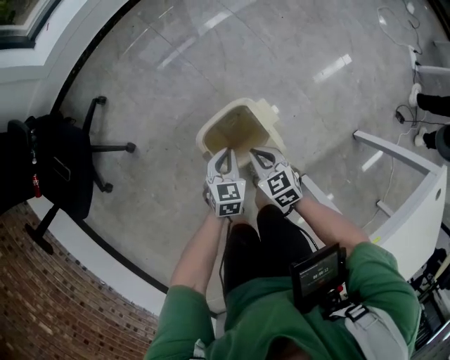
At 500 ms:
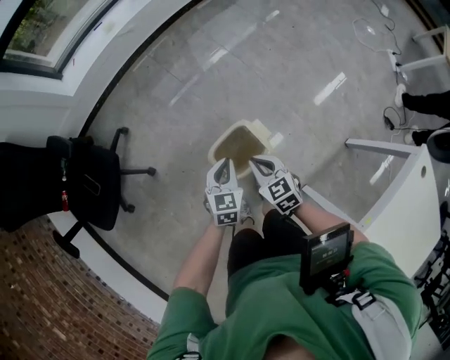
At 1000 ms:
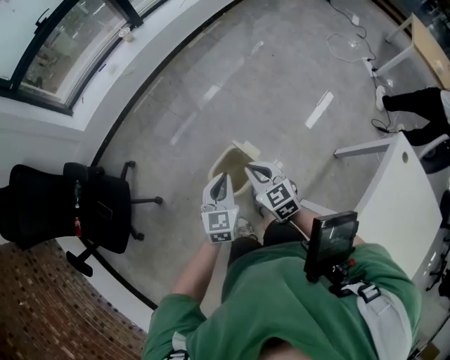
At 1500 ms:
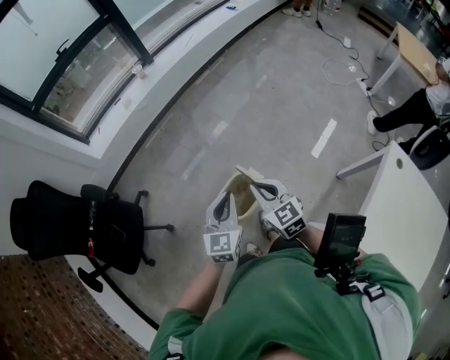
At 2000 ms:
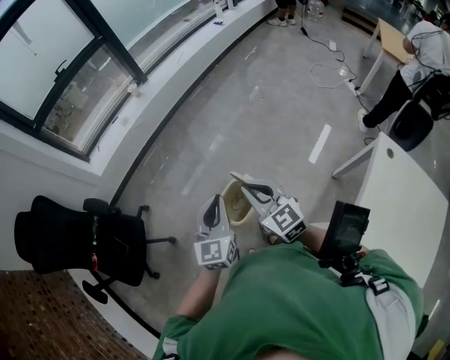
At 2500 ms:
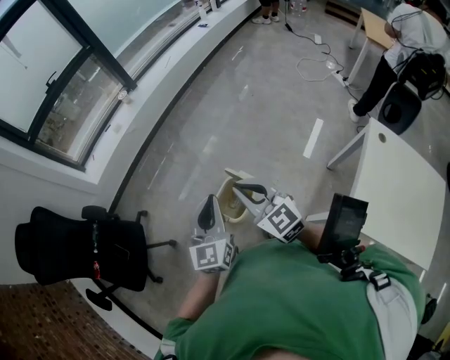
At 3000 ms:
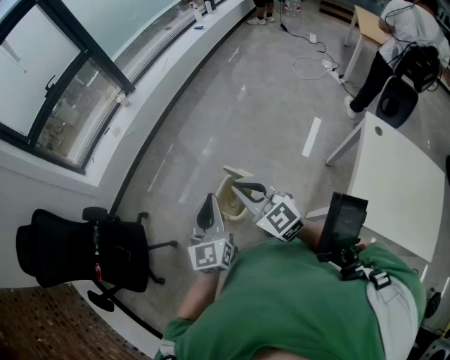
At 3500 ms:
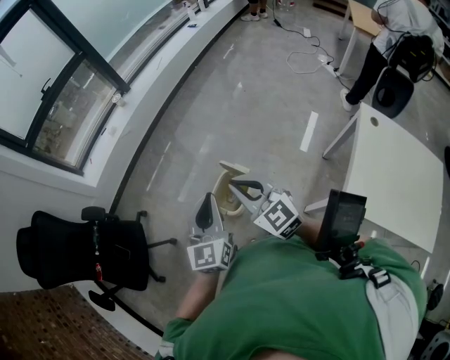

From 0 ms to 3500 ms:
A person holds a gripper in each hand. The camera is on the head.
From 0 ms to 2000 ms: The two grippers go roughly 50 cm upward. The right gripper angles its fingers upward, by approximately 30 degrees, while the left gripper points its fingers about 40 degrees further upward.
From 2000 ms to 3500 ms: The two grippers go about 5 cm backward.

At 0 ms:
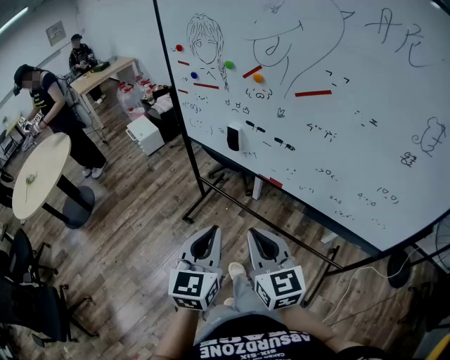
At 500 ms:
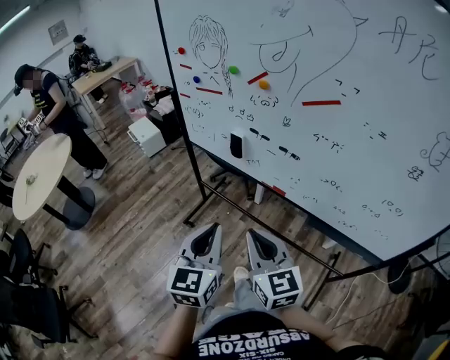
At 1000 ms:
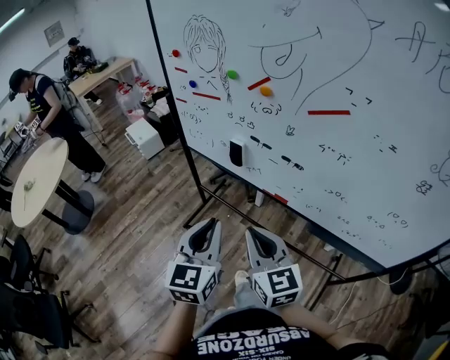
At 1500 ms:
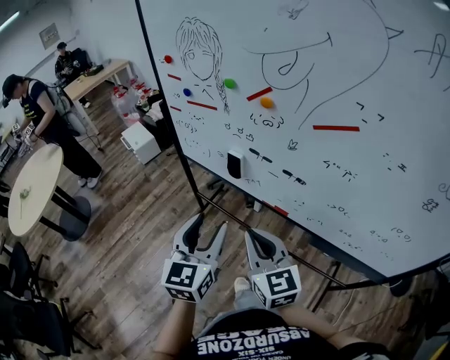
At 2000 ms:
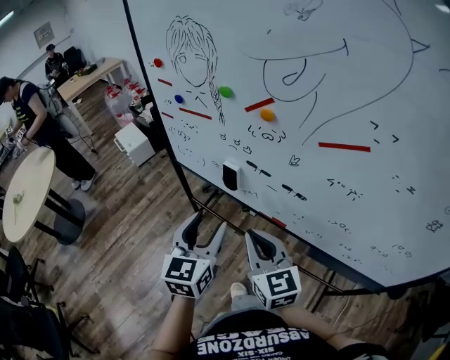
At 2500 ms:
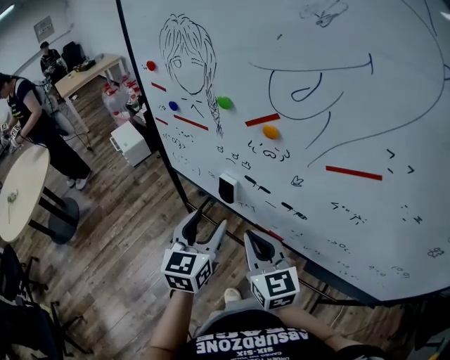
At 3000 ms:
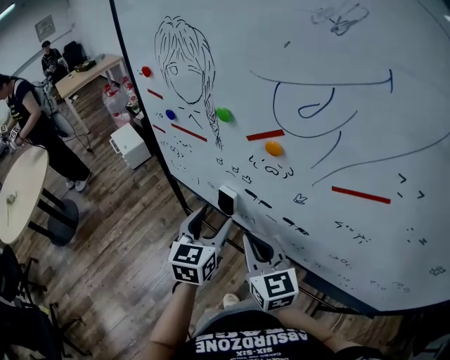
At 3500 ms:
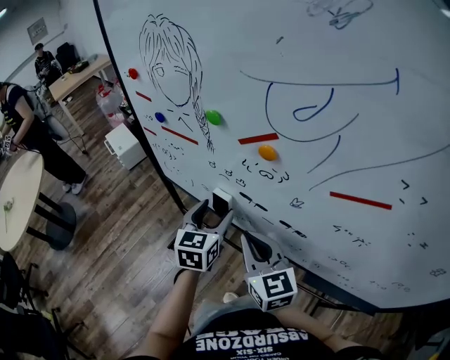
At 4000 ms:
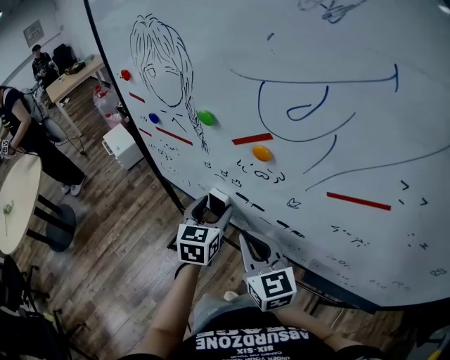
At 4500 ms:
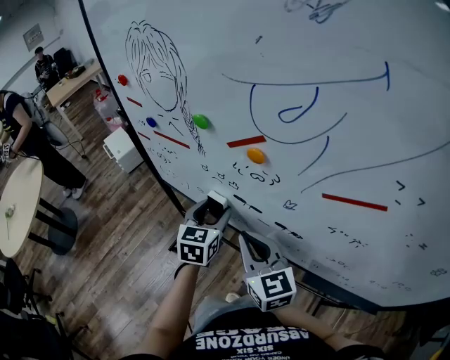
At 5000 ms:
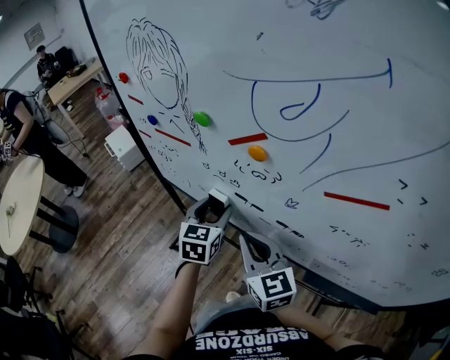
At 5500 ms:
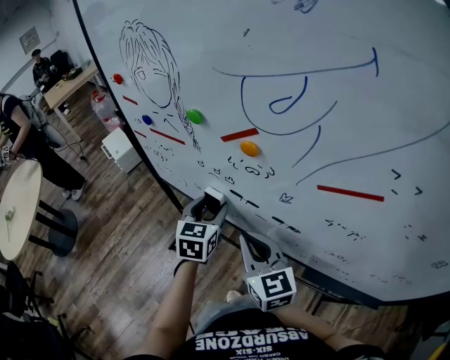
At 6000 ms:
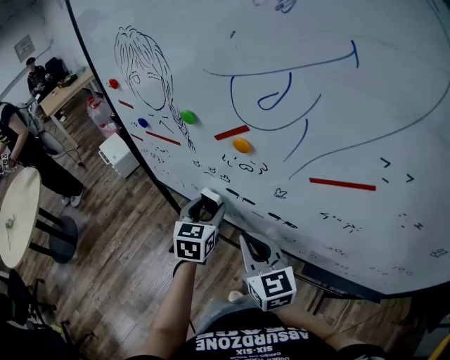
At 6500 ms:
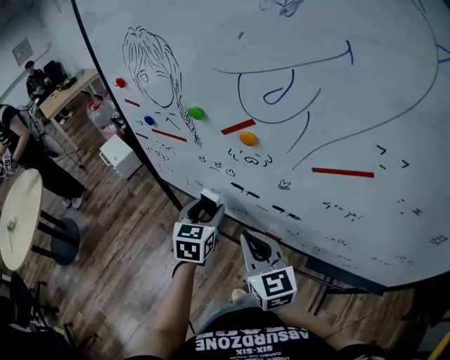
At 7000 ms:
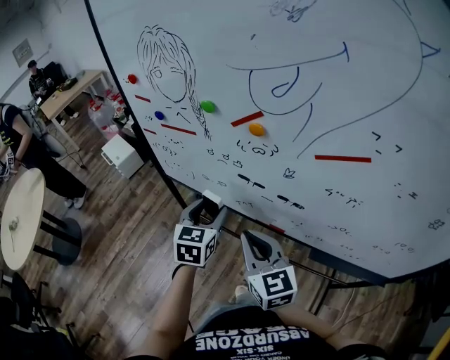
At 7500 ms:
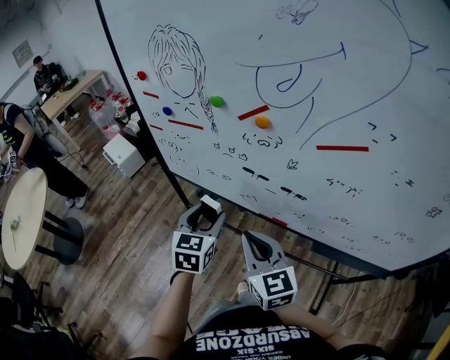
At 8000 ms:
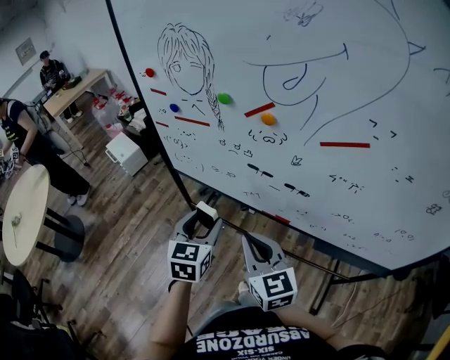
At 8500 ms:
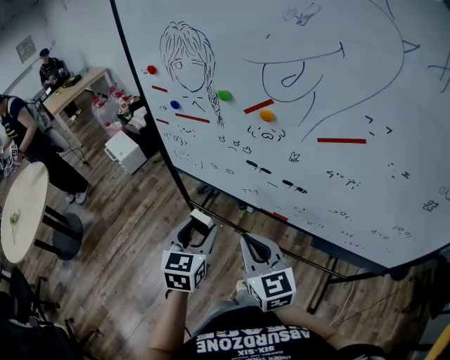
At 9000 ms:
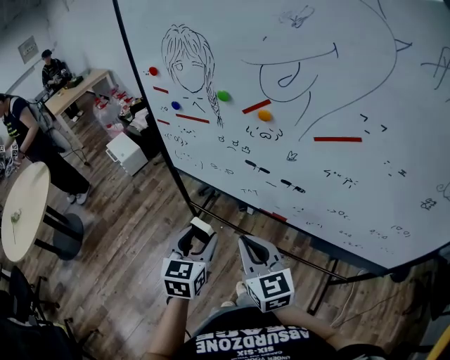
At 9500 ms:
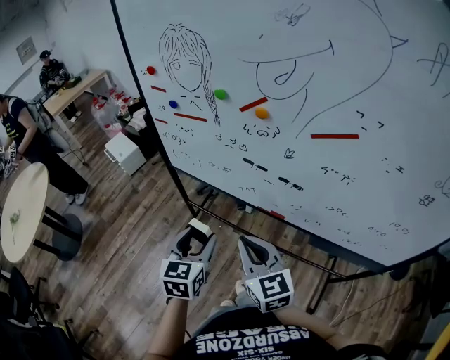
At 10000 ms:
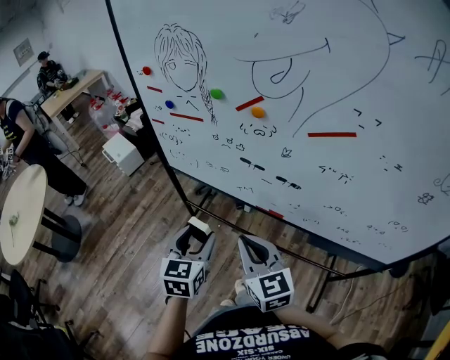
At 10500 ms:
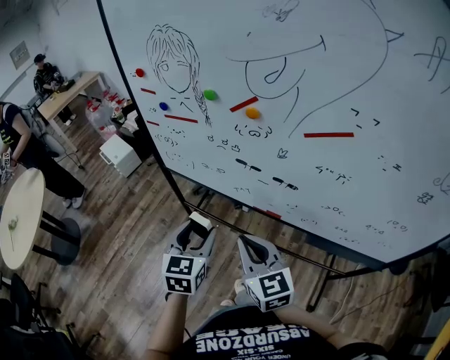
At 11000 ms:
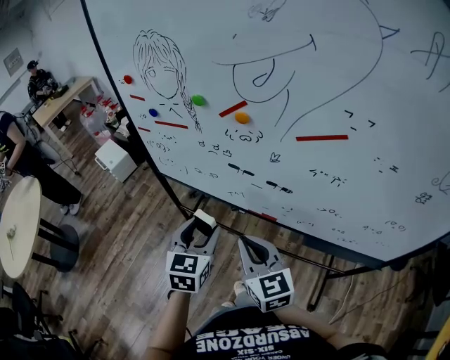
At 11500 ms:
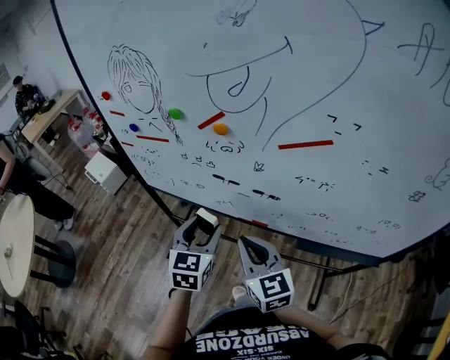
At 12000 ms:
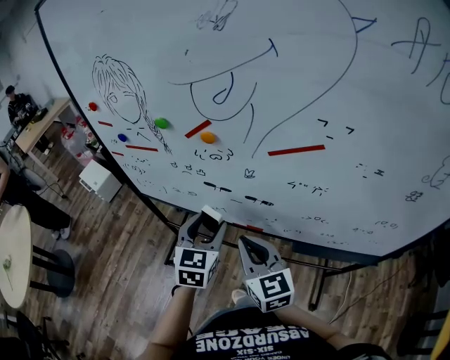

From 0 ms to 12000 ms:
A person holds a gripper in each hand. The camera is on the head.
From 0 ms to 2000 ms: Both grippers travel together forward, about 20 cm. The left gripper opens up.
From 2000 ms to 4000 ms: The left gripper shifts about 20 cm forward and downward; the right gripper is displaced forward by roughly 10 cm.
From 4000 ms to 6000 ms: The grippers stay close to where they were, moving slightly.
From 6000 ms to 8000 ms: The two grippers go roughly 15 cm backward and to the left.
From 8000 ms to 10000 ms: The left gripper travels backward by some 5 cm.
From 10000 ms to 12000 ms: The right gripper is displaced to the right and forward by about 10 cm. The left gripper shifts approximately 15 cm to the right and forward.

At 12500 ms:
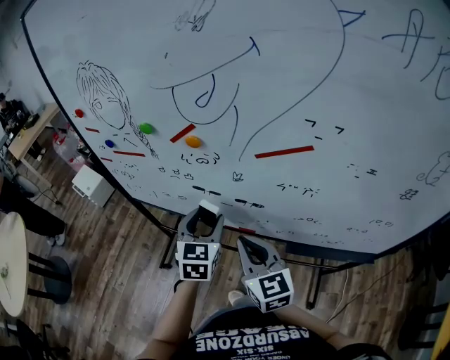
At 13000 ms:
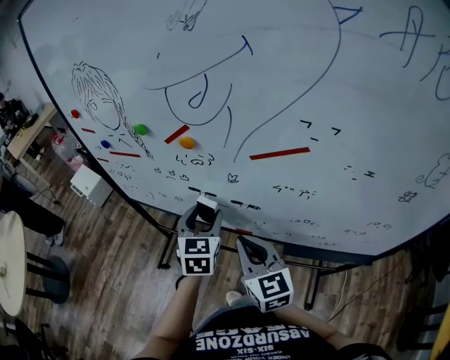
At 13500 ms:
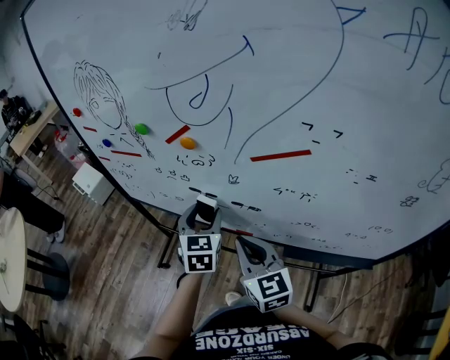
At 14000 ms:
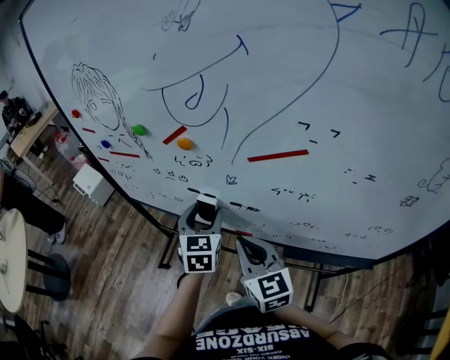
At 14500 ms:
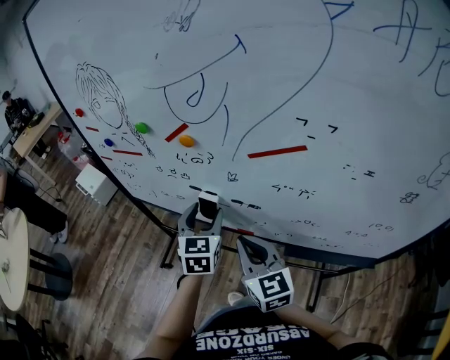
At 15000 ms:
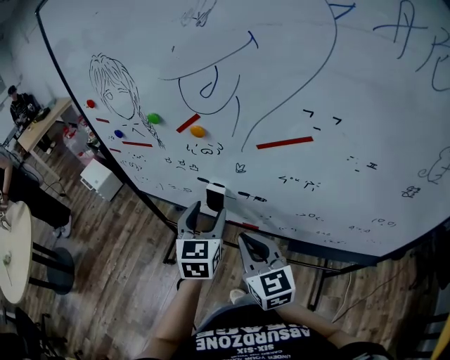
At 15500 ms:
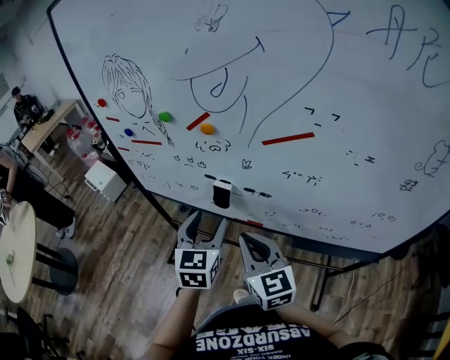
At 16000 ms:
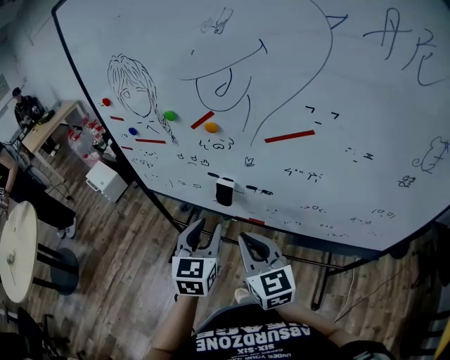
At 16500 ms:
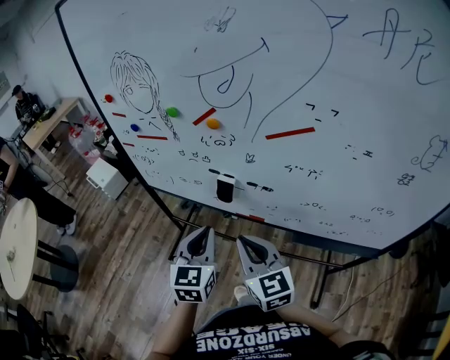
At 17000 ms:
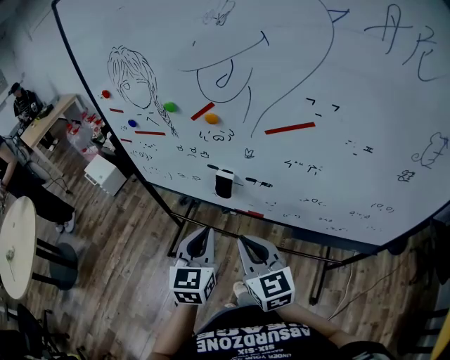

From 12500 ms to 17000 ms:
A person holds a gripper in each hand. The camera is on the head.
From 12500 ms to 14500 ms: The grippers stay close to where they were, moving slightly.
From 14500 ms to 17000 ms: The left gripper goes approximately 15 cm backward and to the left, and closes. The right gripper heads backward, covering about 5 cm.

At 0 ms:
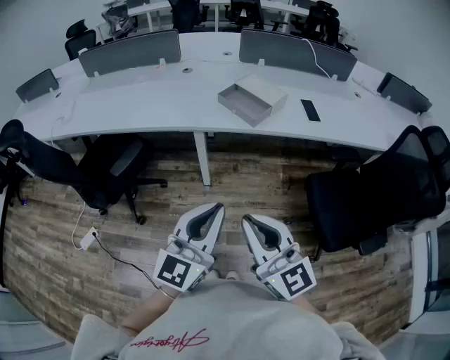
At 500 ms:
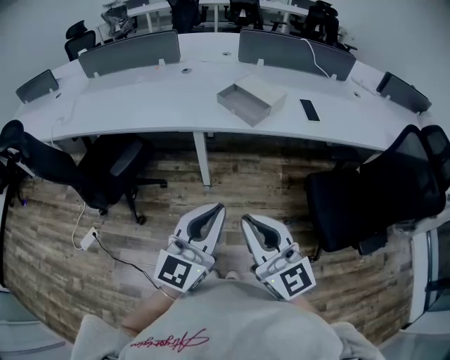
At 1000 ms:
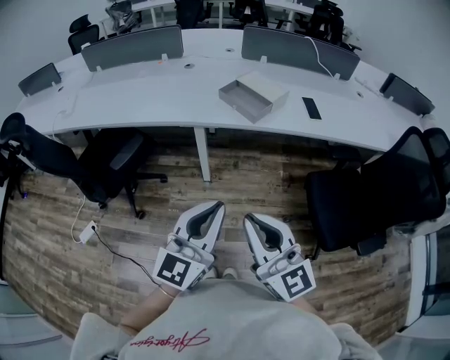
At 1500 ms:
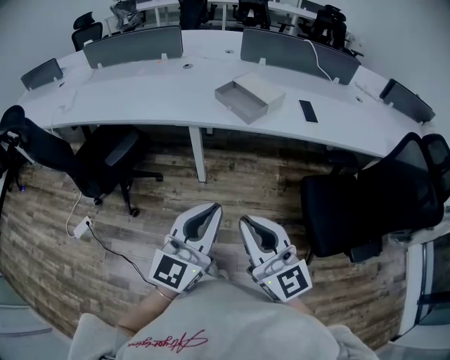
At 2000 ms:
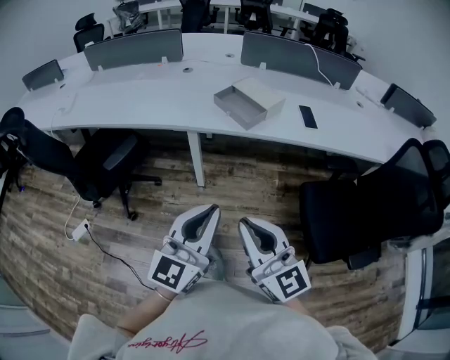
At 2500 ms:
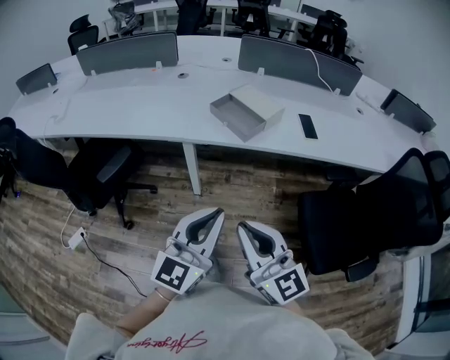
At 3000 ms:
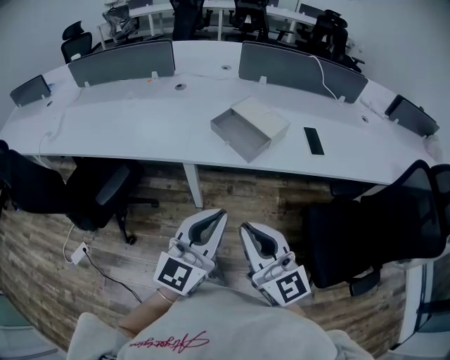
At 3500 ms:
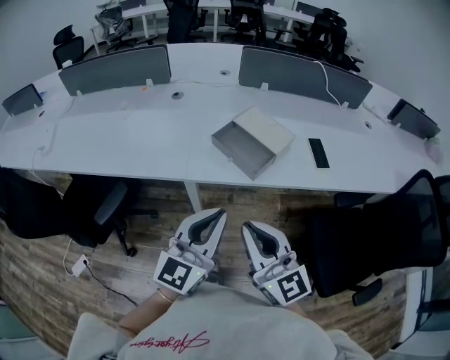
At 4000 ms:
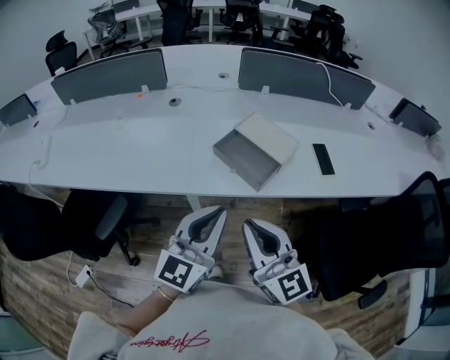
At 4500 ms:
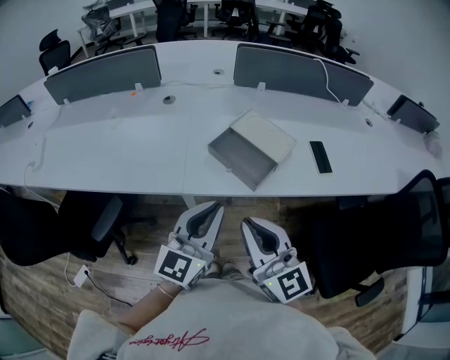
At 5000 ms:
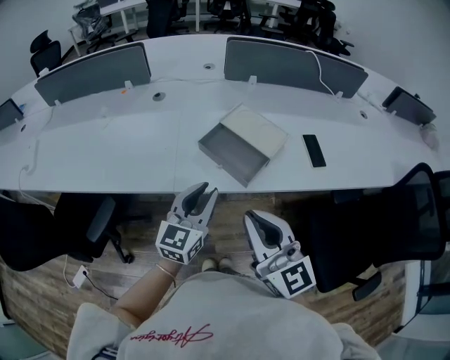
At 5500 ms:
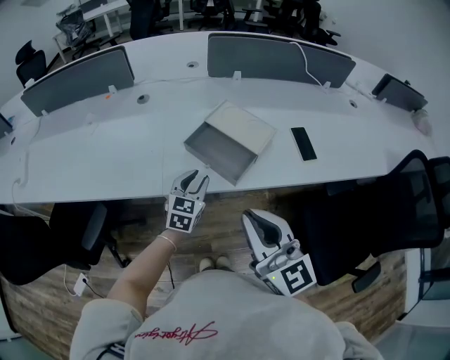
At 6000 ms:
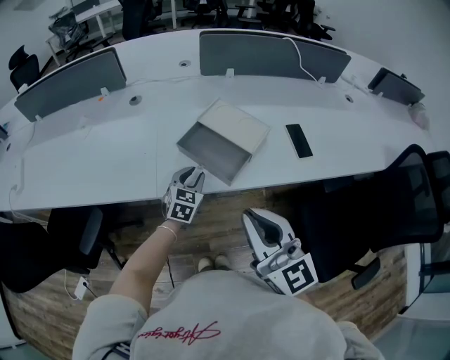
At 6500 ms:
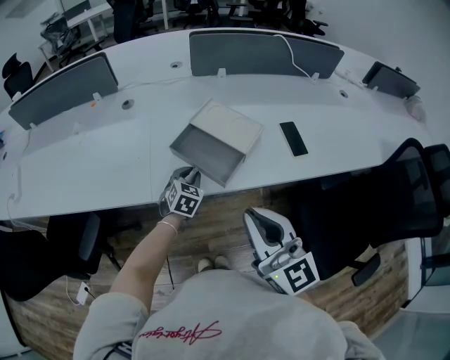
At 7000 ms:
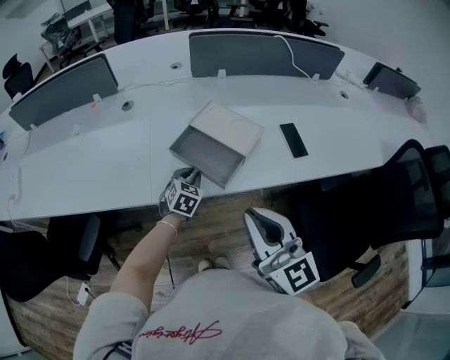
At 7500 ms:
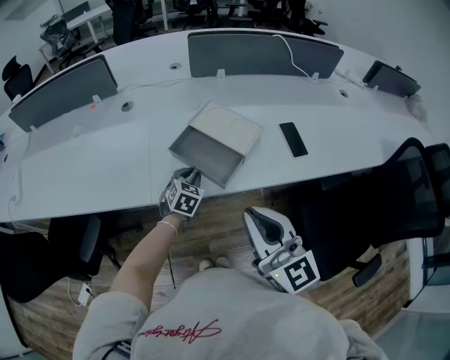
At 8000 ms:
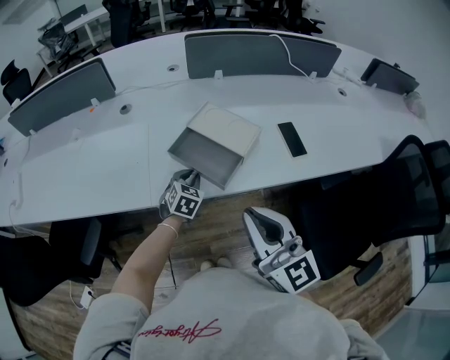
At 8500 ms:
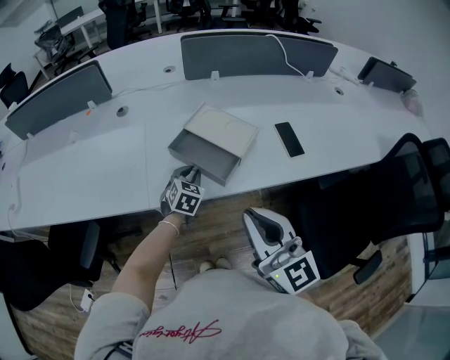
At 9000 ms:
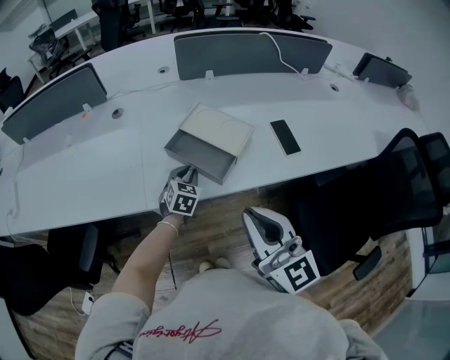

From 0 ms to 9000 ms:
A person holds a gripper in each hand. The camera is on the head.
From 0 ms to 2000 ms: The right gripper moves approximately 5 cm.
From 2000 ms to 4500 ms: Both grippers travel together forward, approximately 30 cm.
From 4500 ms to 7000 ms: The left gripper goes roughly 30 cm downward and forward, and angles its fingers downward, by some 40 degrees; the right gripper is displaced to the right by about 10 cm.
From 7000 ms to 9000 ms: The grippers move only a little.
